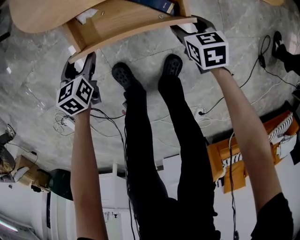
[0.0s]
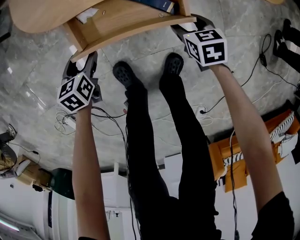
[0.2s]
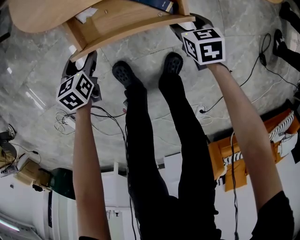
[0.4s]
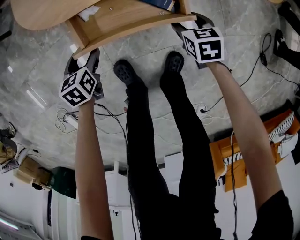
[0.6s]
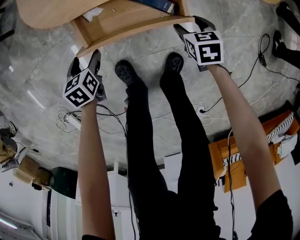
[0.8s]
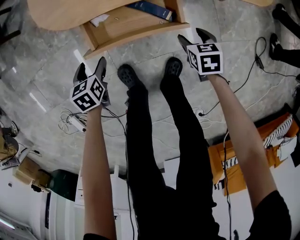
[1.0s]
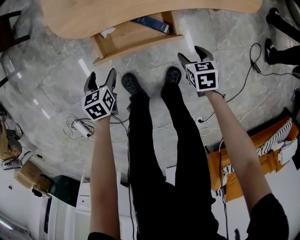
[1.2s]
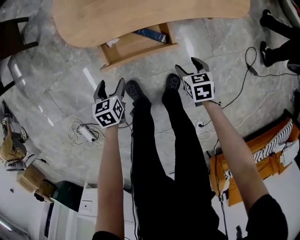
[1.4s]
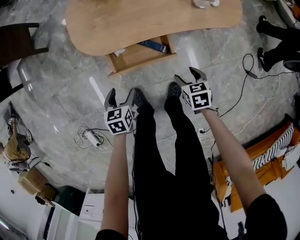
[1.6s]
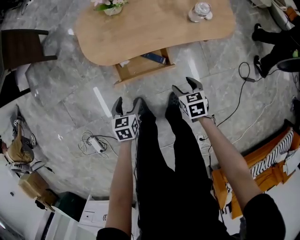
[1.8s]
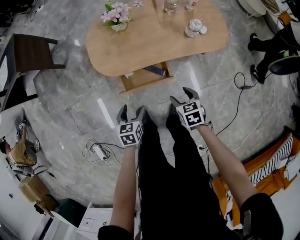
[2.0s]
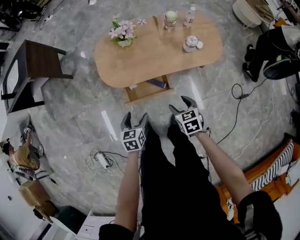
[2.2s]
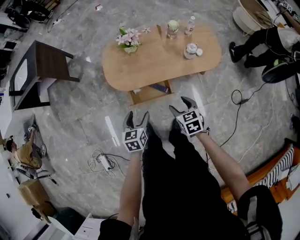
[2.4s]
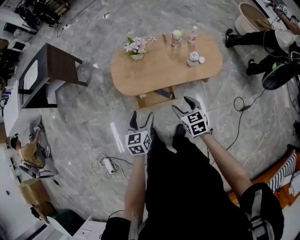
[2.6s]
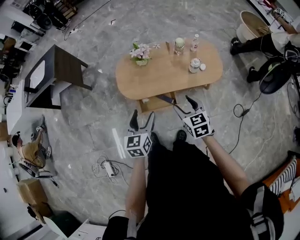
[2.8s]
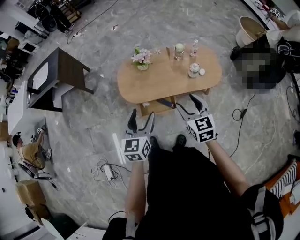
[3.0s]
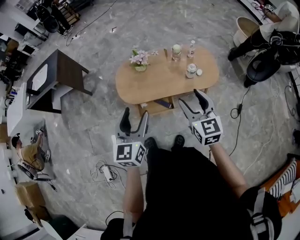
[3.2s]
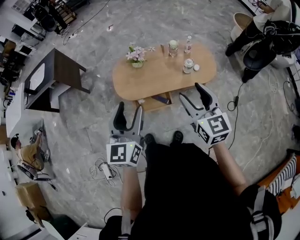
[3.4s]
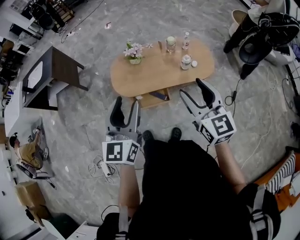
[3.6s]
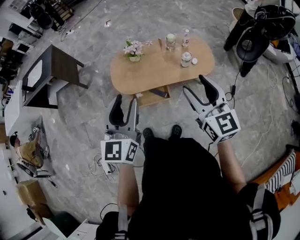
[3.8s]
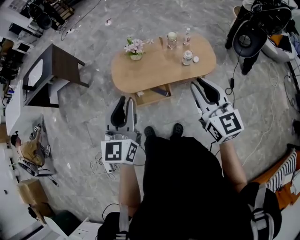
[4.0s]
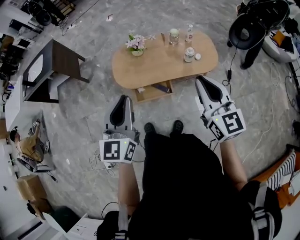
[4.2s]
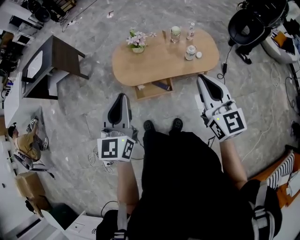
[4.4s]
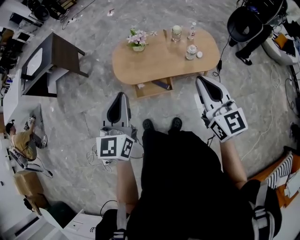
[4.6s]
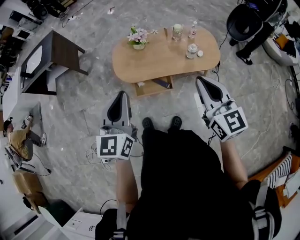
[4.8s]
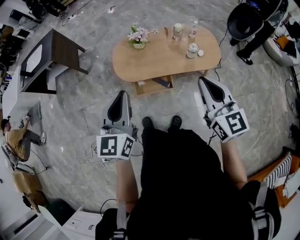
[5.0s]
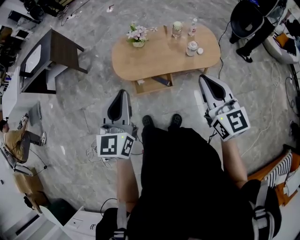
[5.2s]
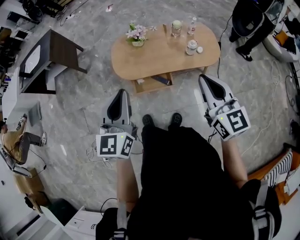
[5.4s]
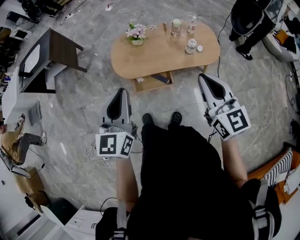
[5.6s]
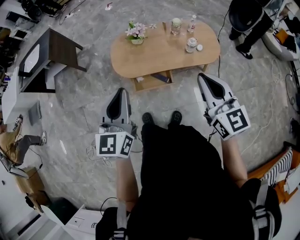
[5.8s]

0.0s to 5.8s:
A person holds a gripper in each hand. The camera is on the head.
0.0s to 1.4s: The right gripper heads upward and backward, covering approximately 15 cm. The left gripper shifts approximately 15 cm upward.
1.4s to 2.8s: Both grippers move upward, roughly 40 cm. The right gripper tilts its fingers about 30 degrees upward; the left gripper angles its fingers upward, by some 30 degrees.
2.8s to 4.4s: The two grippers go roughly 20 cm upward. The right gripper rotates approximately 30 degrees, and closes. Meanwhile the left gripper closes up.
4.4s to 5.8s: The grippers move only a little.

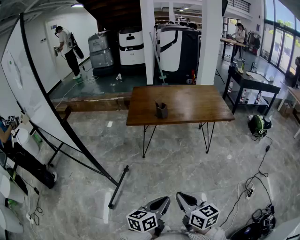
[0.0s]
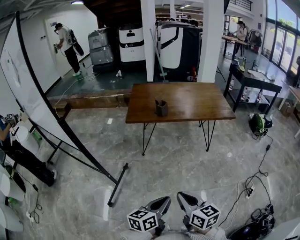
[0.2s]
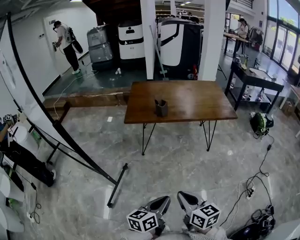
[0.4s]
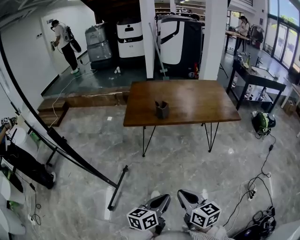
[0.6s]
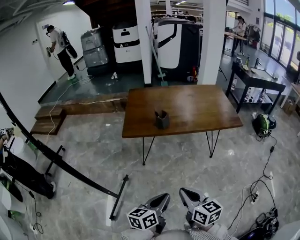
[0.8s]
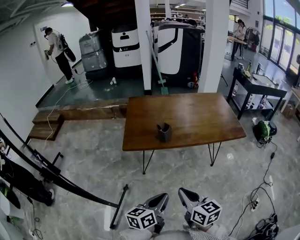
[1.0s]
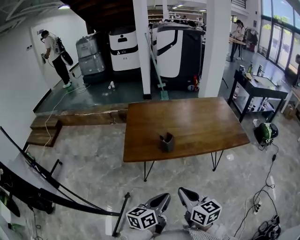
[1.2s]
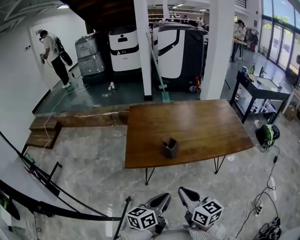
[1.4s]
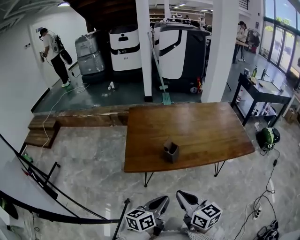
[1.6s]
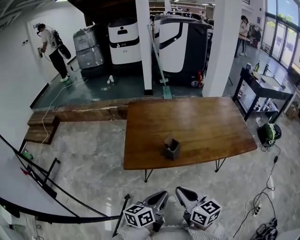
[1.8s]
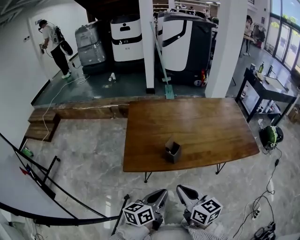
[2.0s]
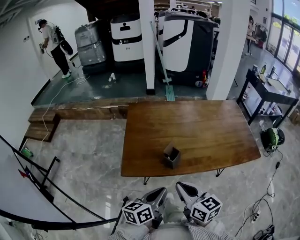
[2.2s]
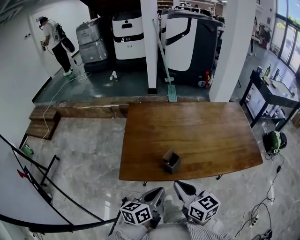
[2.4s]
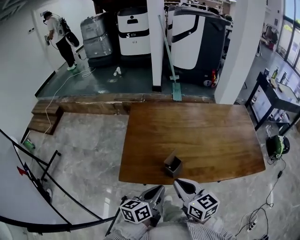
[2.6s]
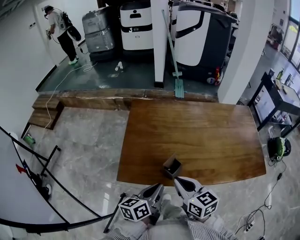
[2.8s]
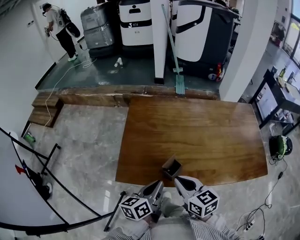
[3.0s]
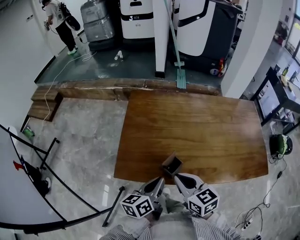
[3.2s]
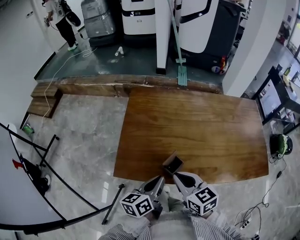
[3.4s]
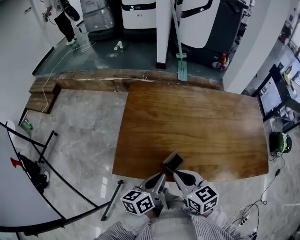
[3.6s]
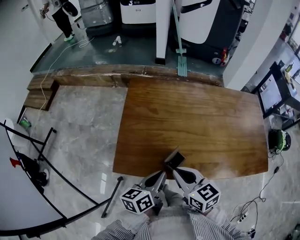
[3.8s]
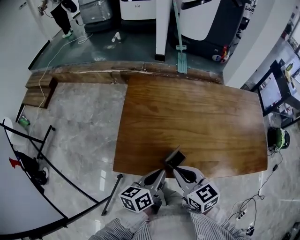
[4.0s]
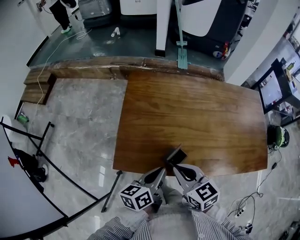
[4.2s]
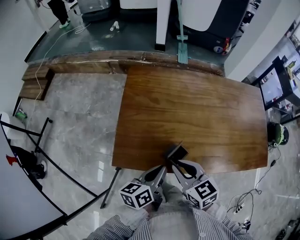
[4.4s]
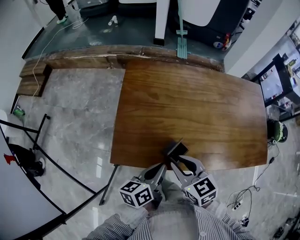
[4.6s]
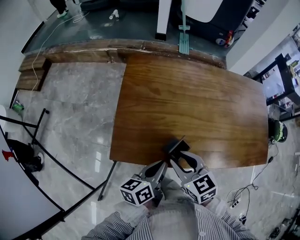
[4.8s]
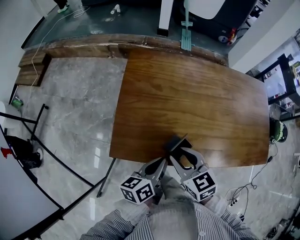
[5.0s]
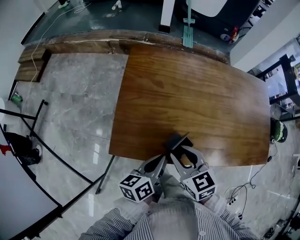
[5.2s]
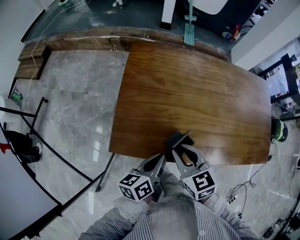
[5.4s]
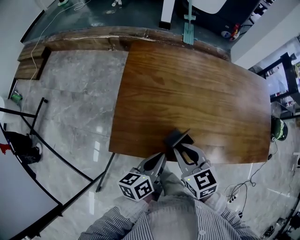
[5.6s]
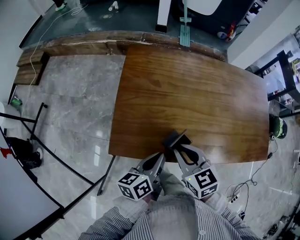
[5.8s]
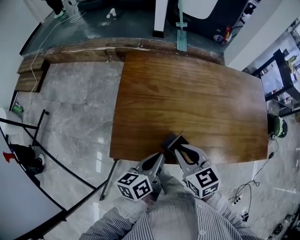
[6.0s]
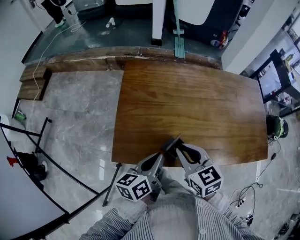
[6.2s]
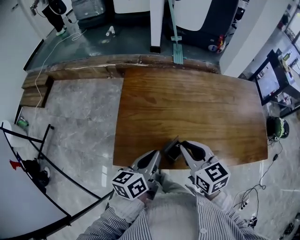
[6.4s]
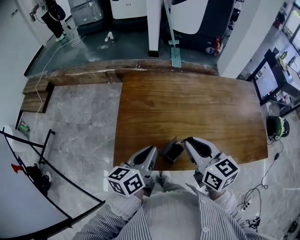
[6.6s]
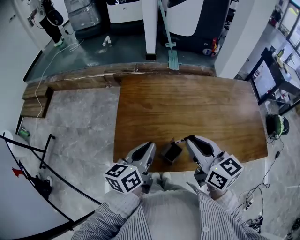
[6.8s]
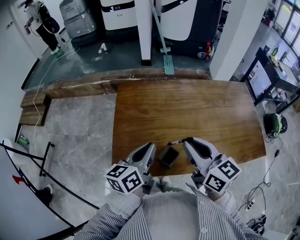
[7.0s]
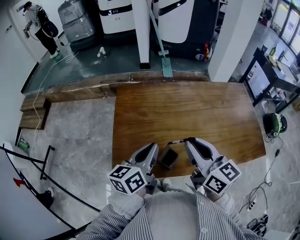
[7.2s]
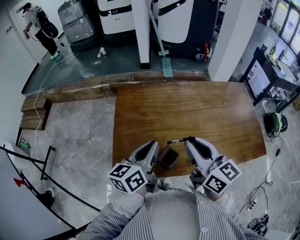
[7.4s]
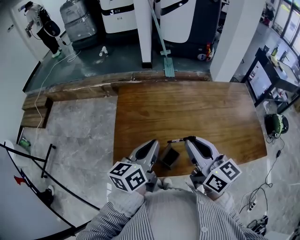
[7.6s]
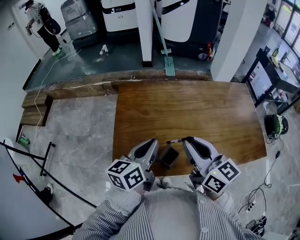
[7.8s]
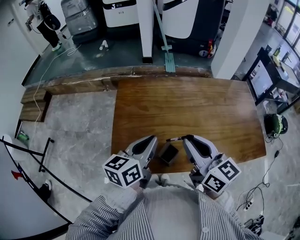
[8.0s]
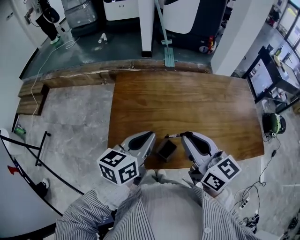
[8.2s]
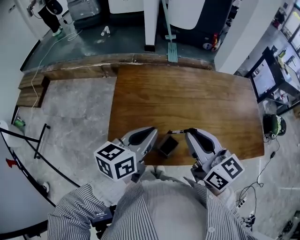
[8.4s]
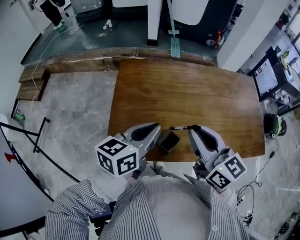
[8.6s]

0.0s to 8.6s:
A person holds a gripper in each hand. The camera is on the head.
0.0s to 1.4s: Both grippers are carried forward, some 40 cm.
1.4s to 2.8s: Both grippers travel together forward, about 25 cm.
2.8s to 4.4s: The left gripper changes place by some 5 cm. The right gripper changes place by roughly 5 cm.
4.4s to 5.8s: The grippers make only small movements.
5.8s to 7.2s: The right gripper moves upward and to the right, some 20 cm, and tips its fingers upward by about 30 degrees. The left gripper shifts roughly 15 cm upward and forward, and turns by roughly 20 degrees.
7.2s to 8.6s: The grippers move only a little.

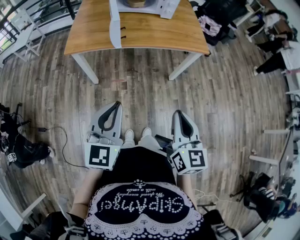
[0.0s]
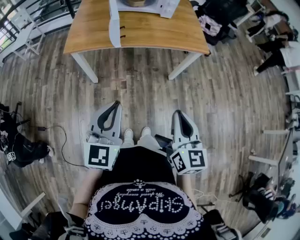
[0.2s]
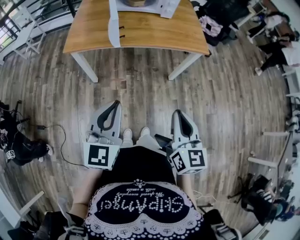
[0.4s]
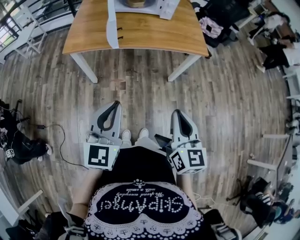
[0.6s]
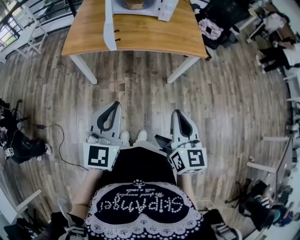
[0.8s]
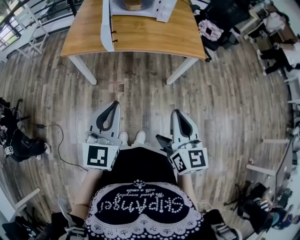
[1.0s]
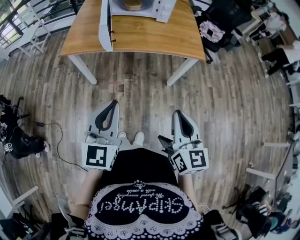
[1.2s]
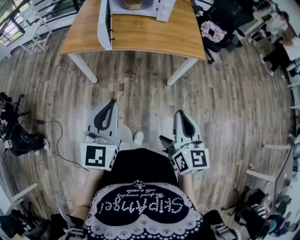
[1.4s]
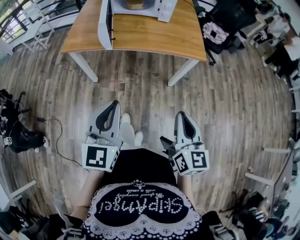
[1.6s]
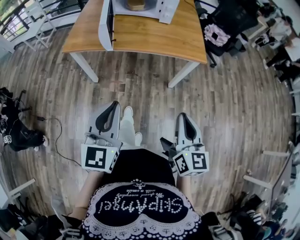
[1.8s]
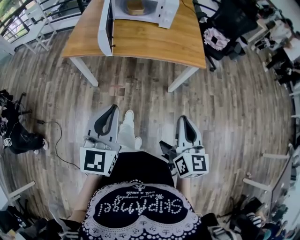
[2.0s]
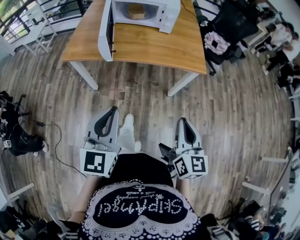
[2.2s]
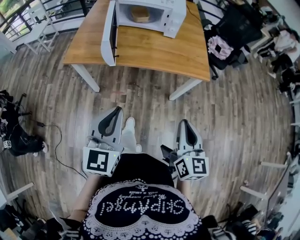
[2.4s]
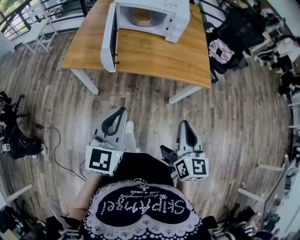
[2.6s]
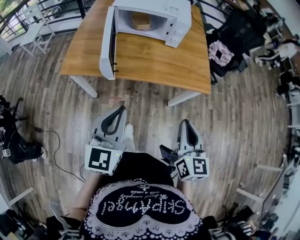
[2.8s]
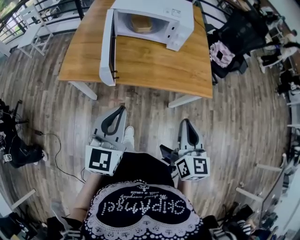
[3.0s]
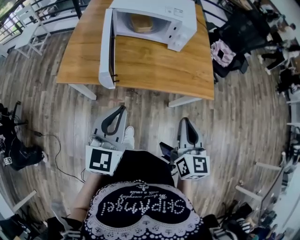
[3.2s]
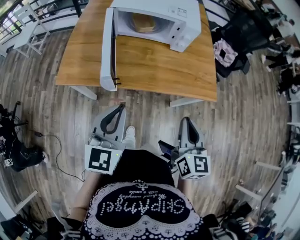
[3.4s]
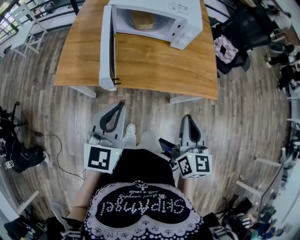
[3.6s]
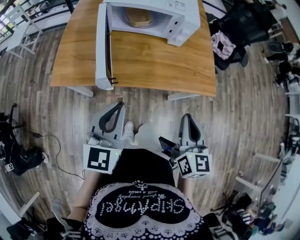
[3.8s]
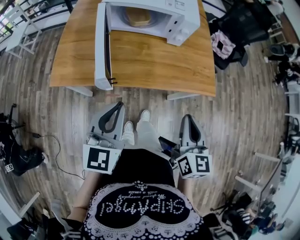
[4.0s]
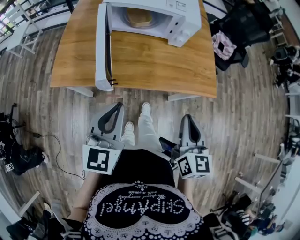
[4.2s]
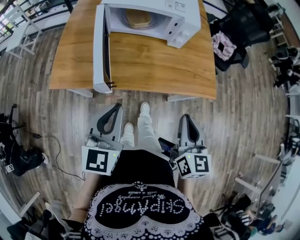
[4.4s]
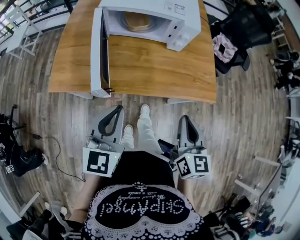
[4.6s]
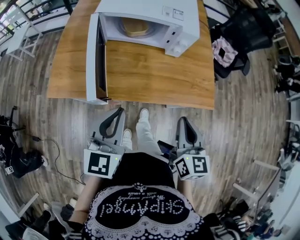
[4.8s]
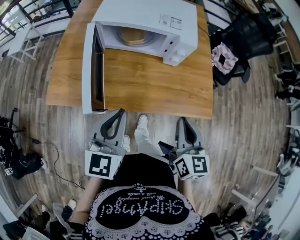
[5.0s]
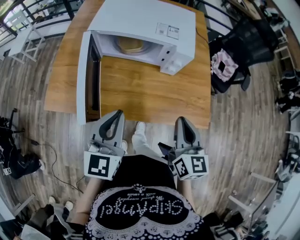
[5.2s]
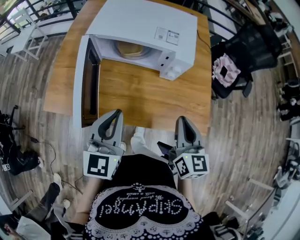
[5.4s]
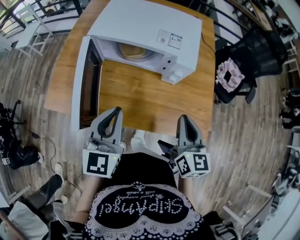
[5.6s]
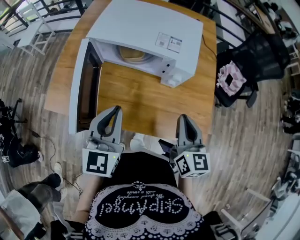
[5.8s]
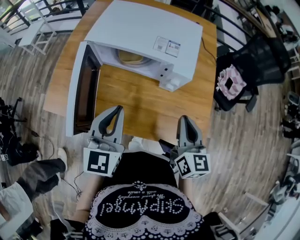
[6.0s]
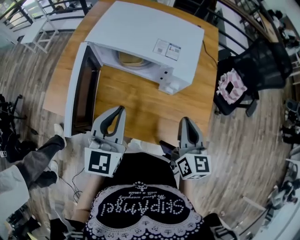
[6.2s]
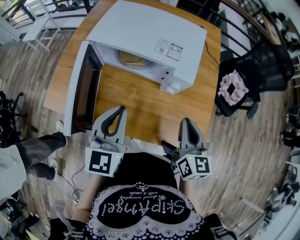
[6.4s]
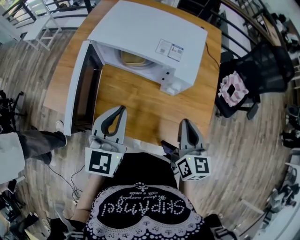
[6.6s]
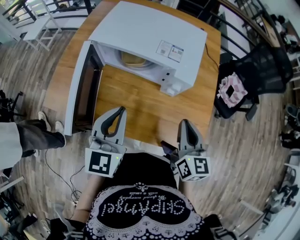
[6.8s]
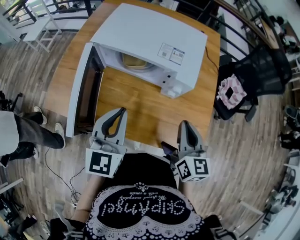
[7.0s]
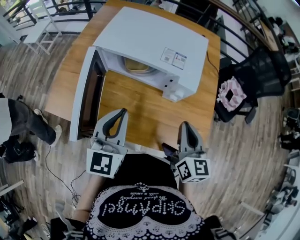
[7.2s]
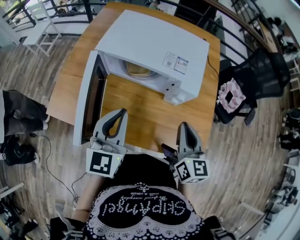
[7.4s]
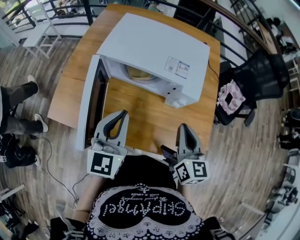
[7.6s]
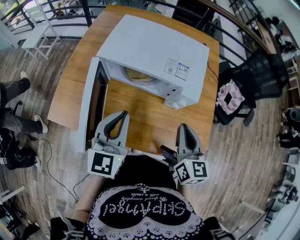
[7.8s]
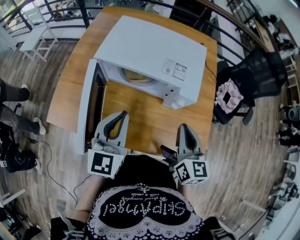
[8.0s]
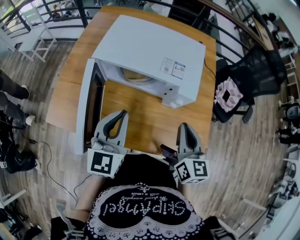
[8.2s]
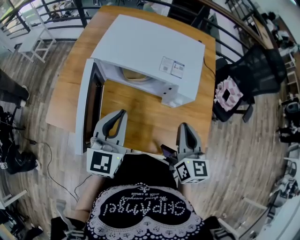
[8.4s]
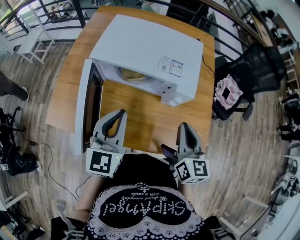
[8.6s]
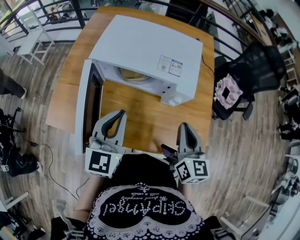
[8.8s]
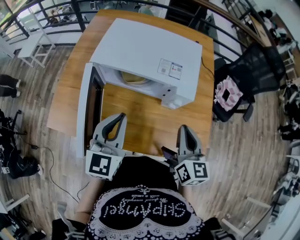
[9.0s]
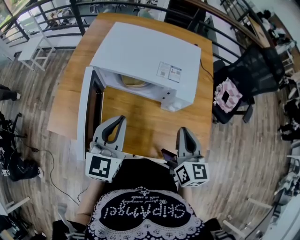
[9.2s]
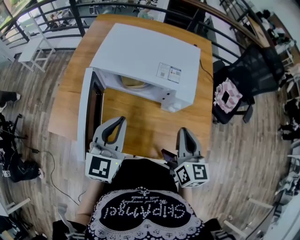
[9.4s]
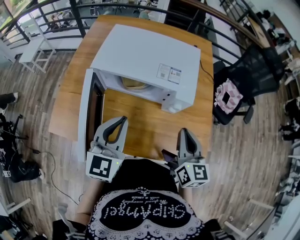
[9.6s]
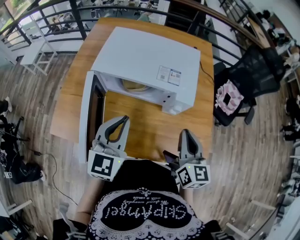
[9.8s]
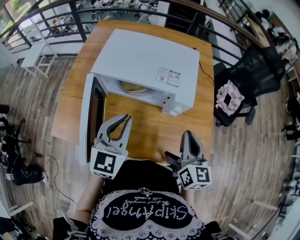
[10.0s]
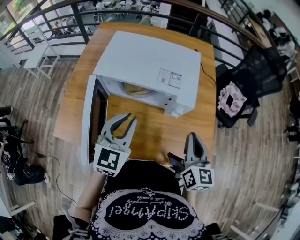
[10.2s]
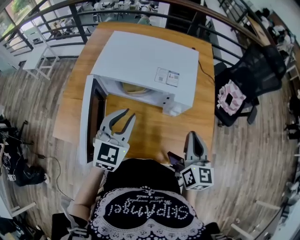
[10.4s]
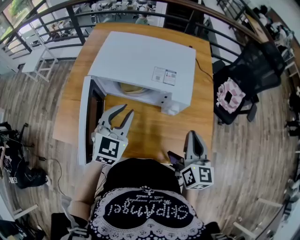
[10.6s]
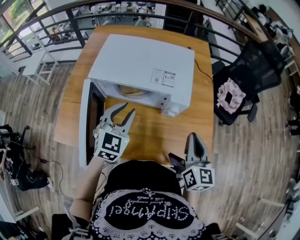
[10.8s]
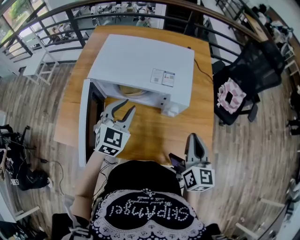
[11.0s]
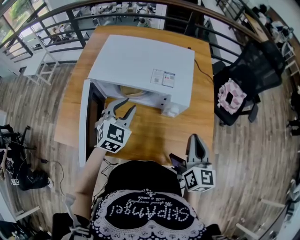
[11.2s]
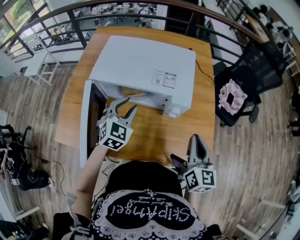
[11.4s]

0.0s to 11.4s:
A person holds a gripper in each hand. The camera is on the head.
0.0s to 1.4s: Both grippers move to the right, approximately 10 cm.
1.4s to 2.8s: Both grippers travel together forward, about 20 cm.
2.8s to 4.2s: The two grippers go about 10 cm forward.
4.2s to 5.6s: The grippers both shift forward by approximately 20 cm.
5.6s to 7.2s: The right gripper moves forward, some 5 cm.
7.2s to 10.0s: The grippers move only a little.
10.0s to 11.4s: The left gripper moves forward and downward, roughly 10 cm, changes its angle by some 30 degrees, and opens its fingers.
